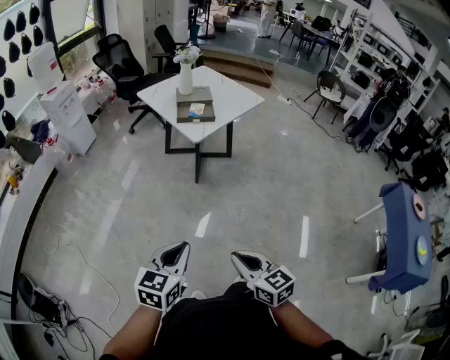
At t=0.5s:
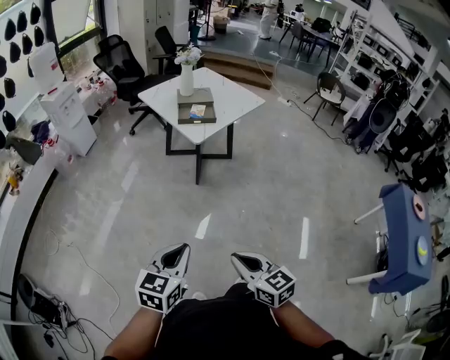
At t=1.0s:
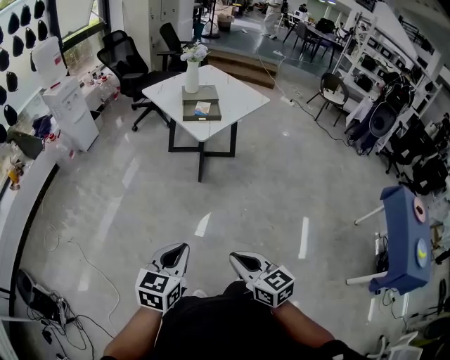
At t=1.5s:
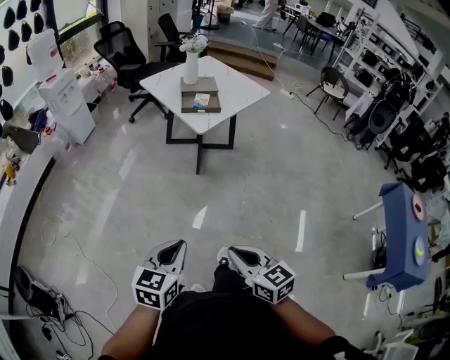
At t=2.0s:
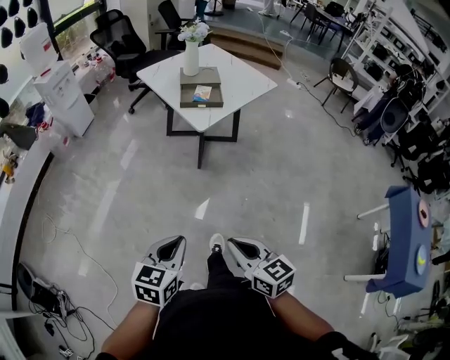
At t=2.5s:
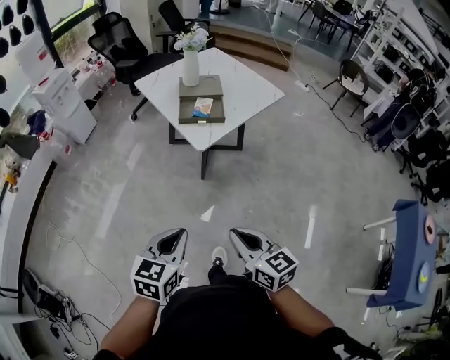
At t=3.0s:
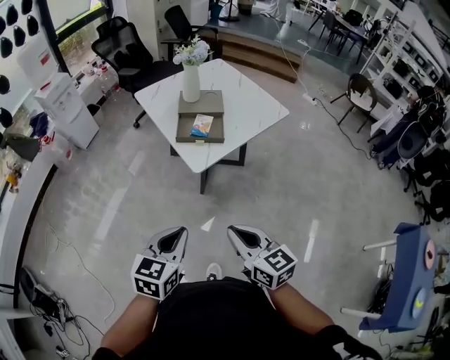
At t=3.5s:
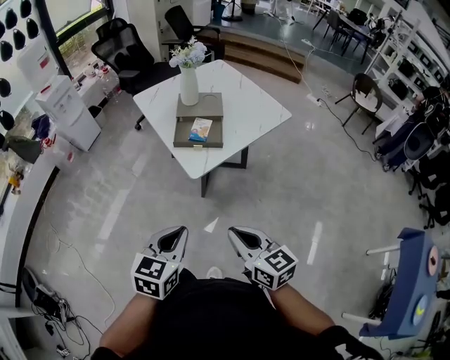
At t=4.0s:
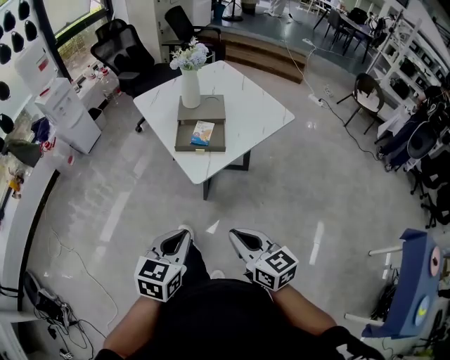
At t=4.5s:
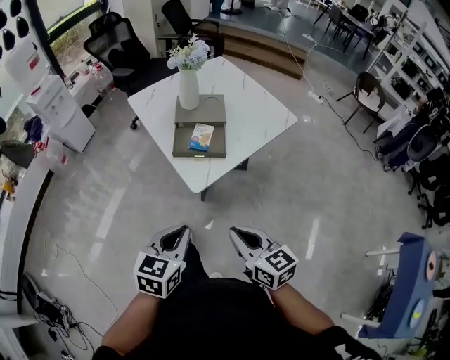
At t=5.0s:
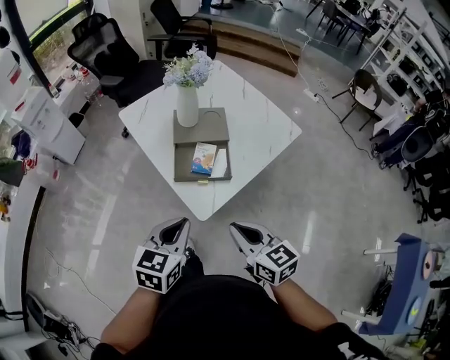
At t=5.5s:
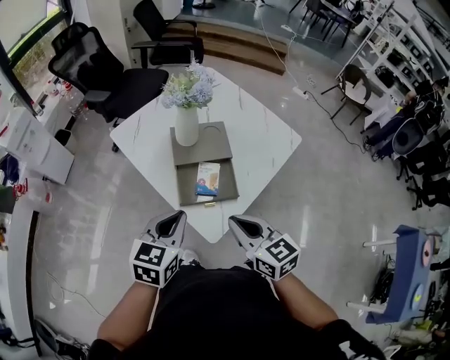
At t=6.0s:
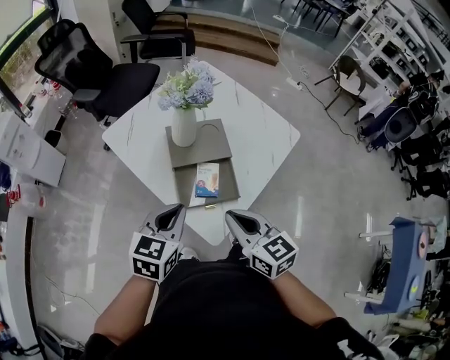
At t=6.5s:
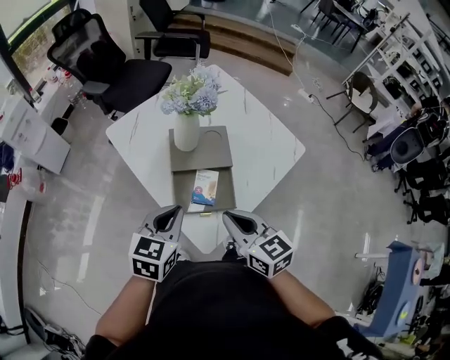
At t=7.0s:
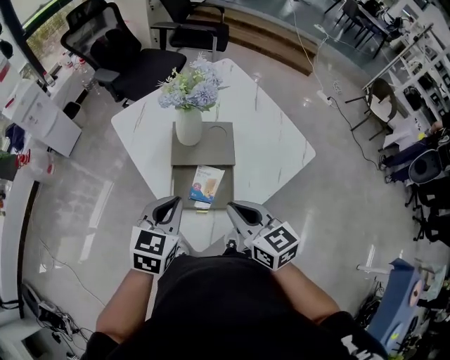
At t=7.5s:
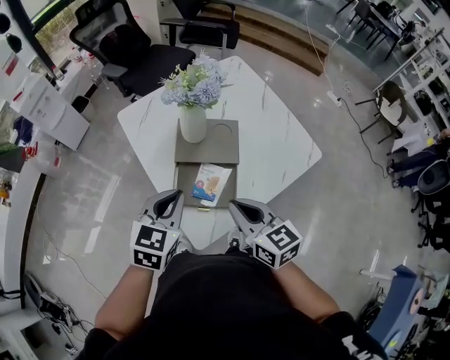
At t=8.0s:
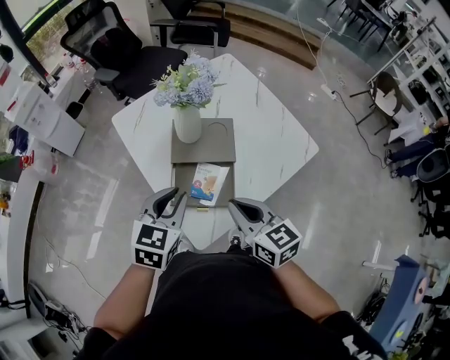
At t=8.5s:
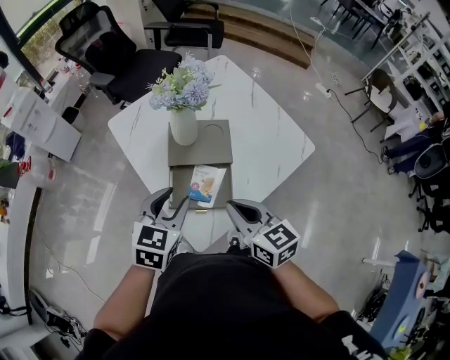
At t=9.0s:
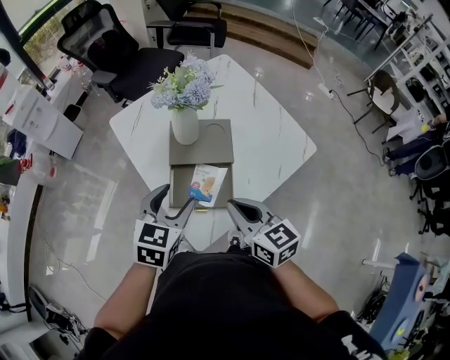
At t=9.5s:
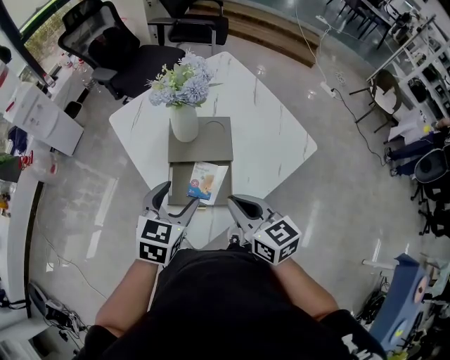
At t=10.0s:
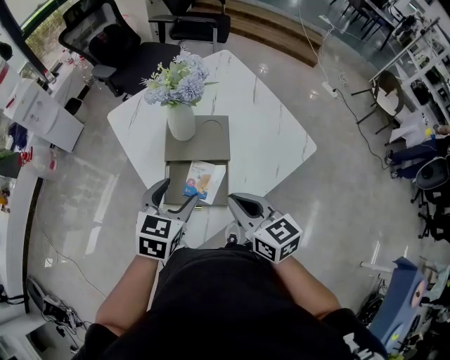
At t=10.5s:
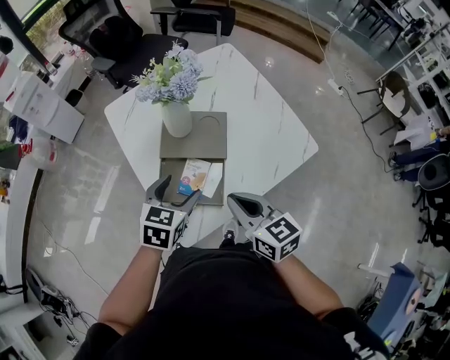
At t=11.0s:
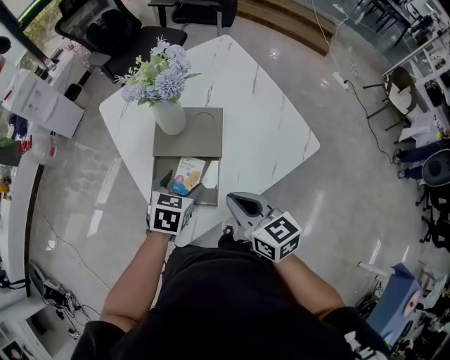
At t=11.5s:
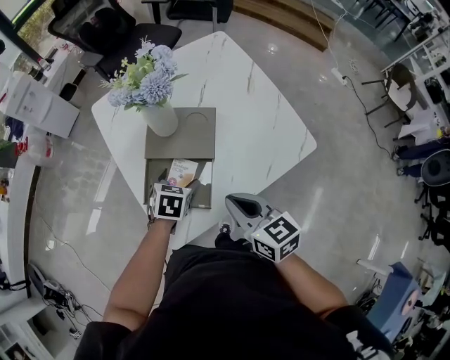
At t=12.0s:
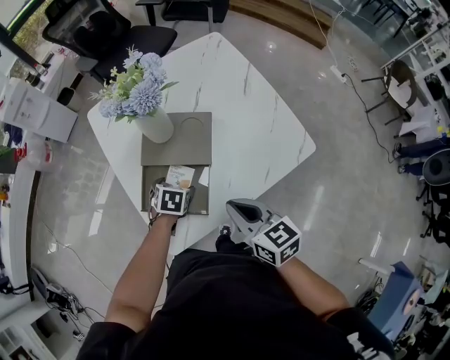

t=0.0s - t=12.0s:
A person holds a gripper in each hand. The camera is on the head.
t=0.0s - t=2.0s: The grippers both shift forward by approximately 10 cm.
t=2.0s - t=4.0s: The right gripper heads forward, covering approximately 30 cm; the left gripper is displaced forward and to the right by roughly 30 cm.
t=4.0s - t=6.0s: The grippers both shift forward by about 35 cm.
t=6.0s - t=8.0s: The right gripper travels to the right and forward by approximately 10 cm; the left gripper heads to the right, covering about 5 cm.
t=8.0s - t=10.0s: The left gripper opens its fingers.
t=10.0s - t=12.0s: The right gripper travels to the right and downward by roughly 10 cm. Meanwhile the left gripper moves downward, about 25 cm, and tilts its fingers roughly 30 degrees downward.

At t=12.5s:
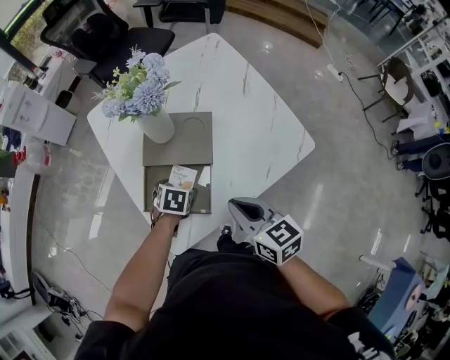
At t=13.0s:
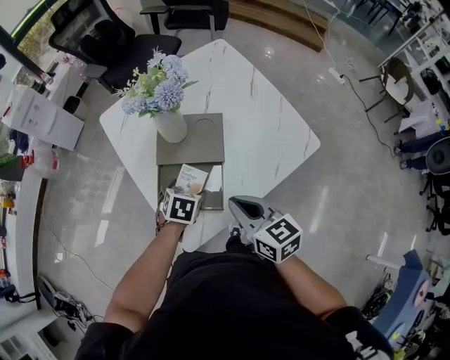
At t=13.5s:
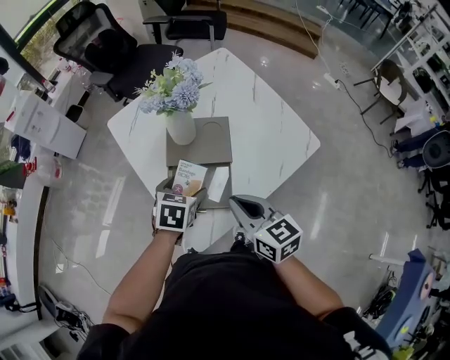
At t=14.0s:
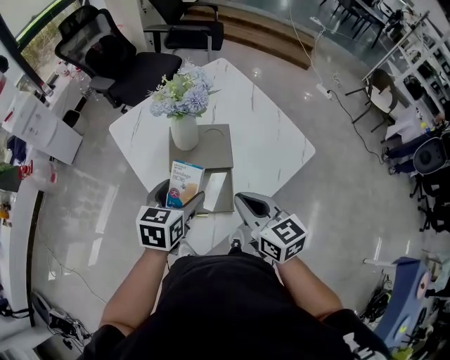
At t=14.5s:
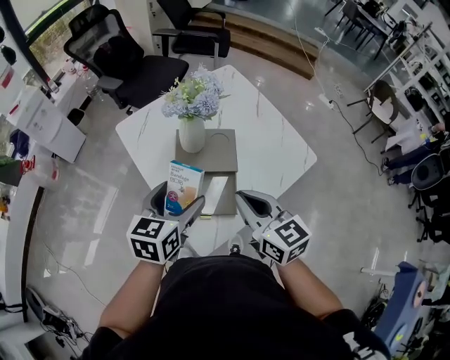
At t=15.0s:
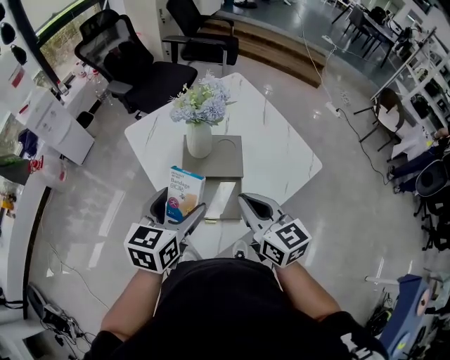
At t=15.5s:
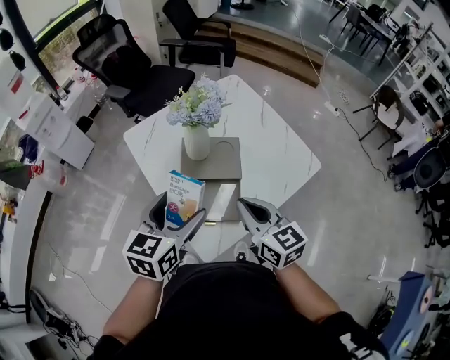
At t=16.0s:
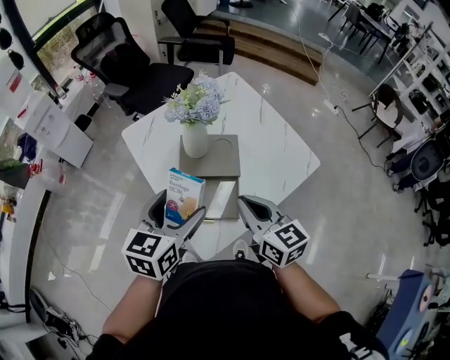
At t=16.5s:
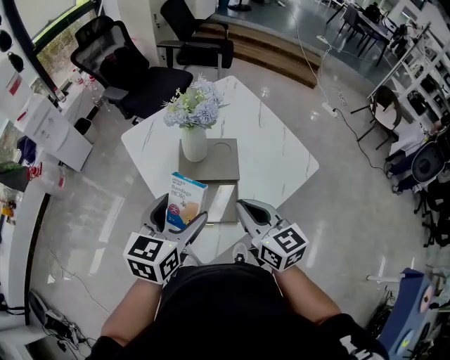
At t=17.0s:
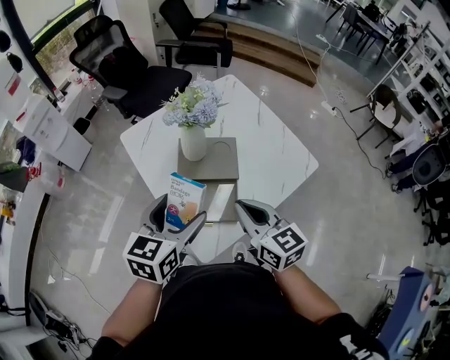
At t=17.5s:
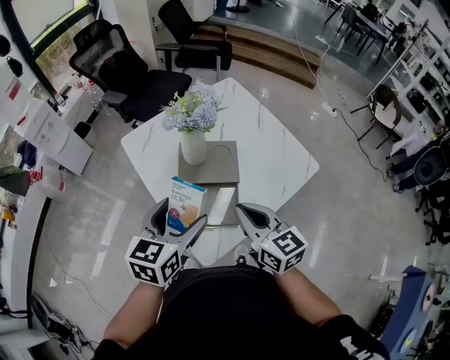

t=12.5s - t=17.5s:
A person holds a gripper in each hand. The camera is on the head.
t=12.5s - t=15.0s: The right gripper goes about 15 cm upward and to the left; the left gripper shifts about 30 cm upward, and points its fingers some 50 degrees further upward.
t=15.0s - t=17.5s: There are only small adjustments of the grippers.

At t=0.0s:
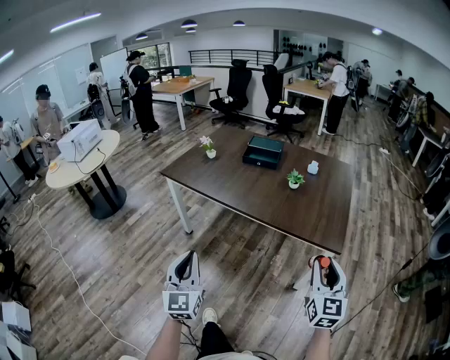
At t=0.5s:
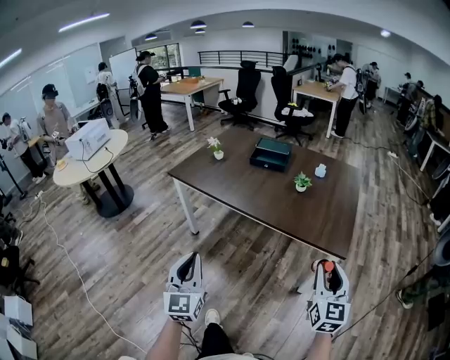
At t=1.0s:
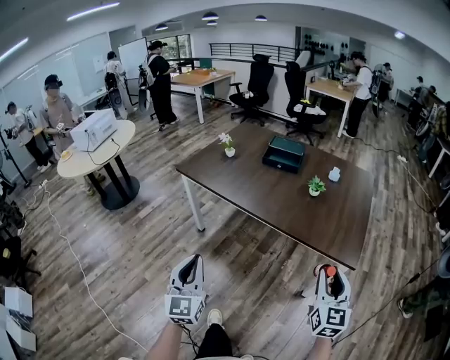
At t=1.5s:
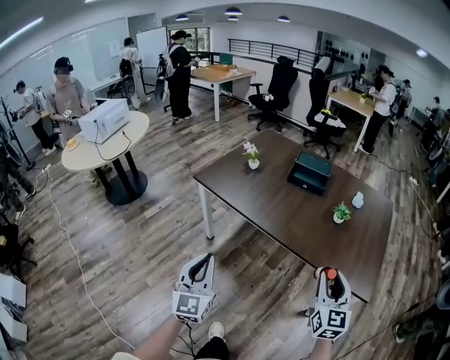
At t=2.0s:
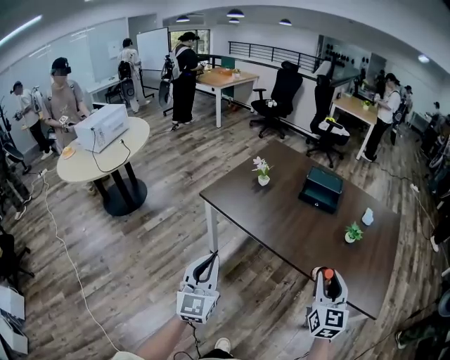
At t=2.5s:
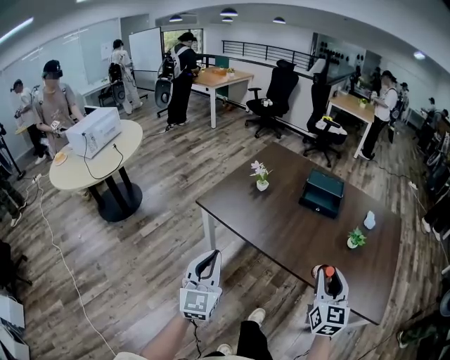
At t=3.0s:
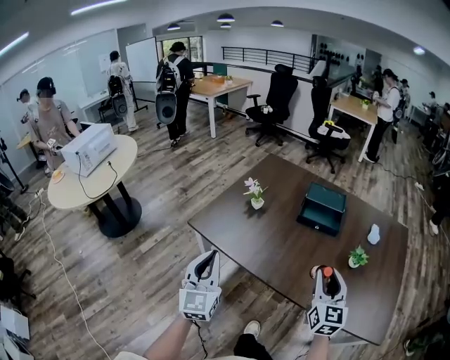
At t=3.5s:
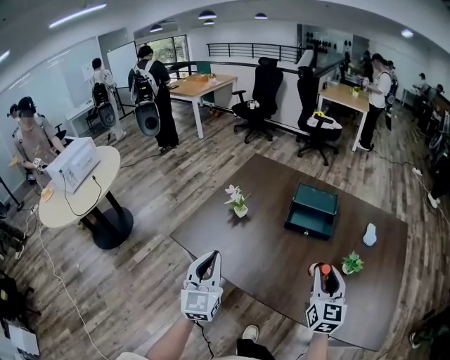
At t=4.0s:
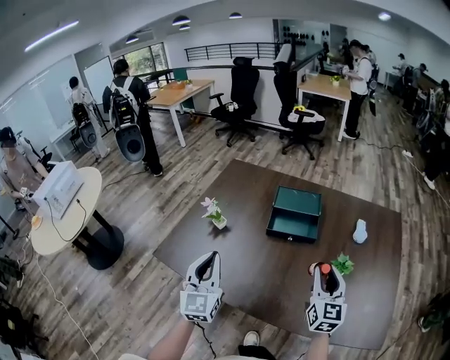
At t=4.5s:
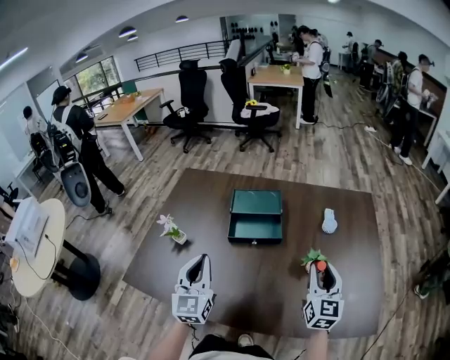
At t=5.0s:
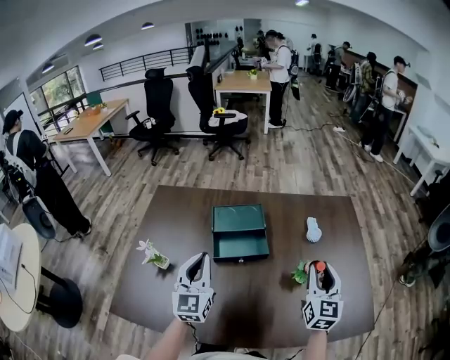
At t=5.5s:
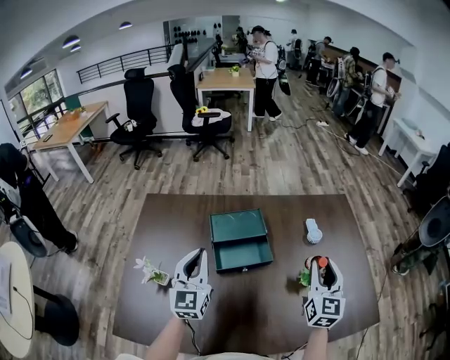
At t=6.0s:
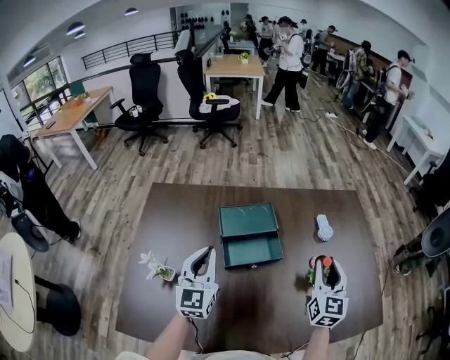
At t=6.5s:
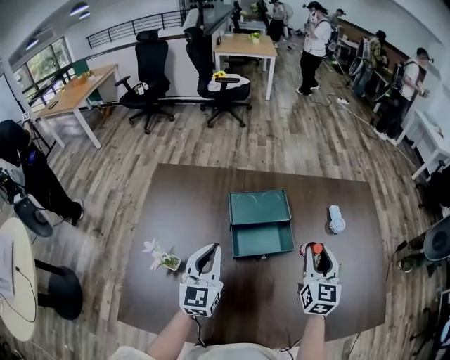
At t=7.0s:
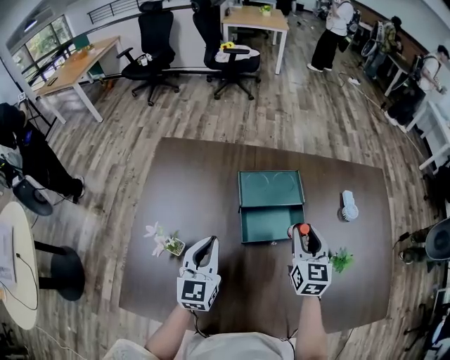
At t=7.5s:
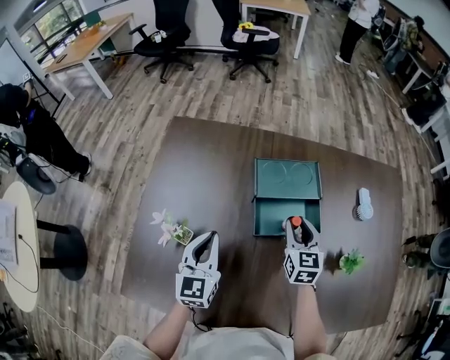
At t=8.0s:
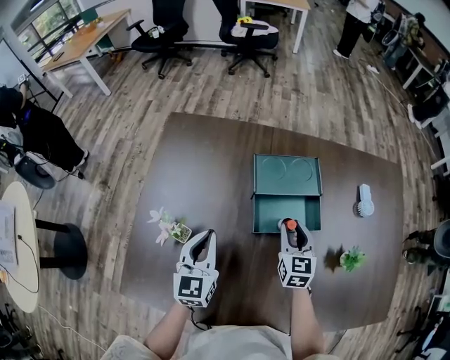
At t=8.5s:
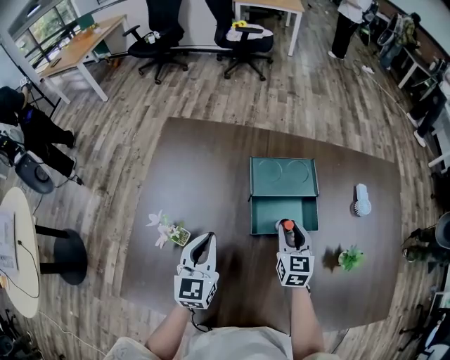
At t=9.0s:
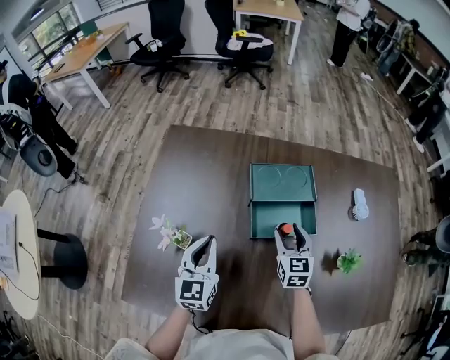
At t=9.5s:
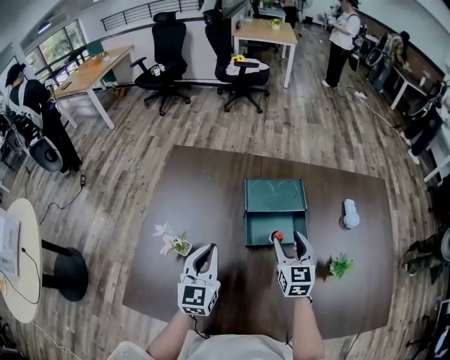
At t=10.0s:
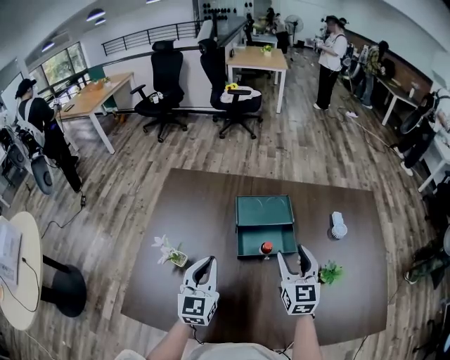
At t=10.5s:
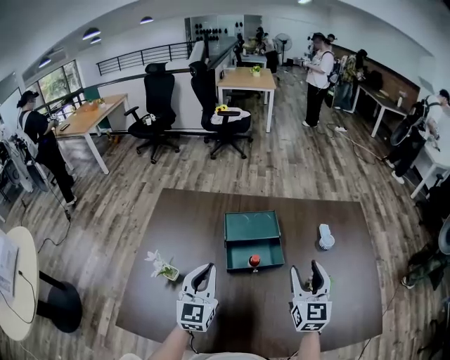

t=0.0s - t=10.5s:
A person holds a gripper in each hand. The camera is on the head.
t=0.0s - t=2.0s: The two grippers go roughly 35 cm forward and to the left.
t=2.0s - t=4.0s: The right gripper travels forward and to the right by about 30 cm, while the left gripper goes roughly 35 cm forward.
t=4.0s - t=6.5s: The right gripper moves approximately 20 cm, and rotates about 20 degrees. Meanwhile the left gripper changes place by about 30 cm, and changes its angle by roughly 30 degrees.
t=6.5s - t=8.5s: The left gripper shifts some 10 cm downward and to the left. The right gripper goes approximately 20 cm downward and to the left.
t=8.5s - t=10.5s: The right gripper heads upward, to the right and backward, covering approximately 25 cm, turns by approximately 20 degrees, and opens up. Meanwhile the left gripper moves upward and to the right, approximately 15 cm.
